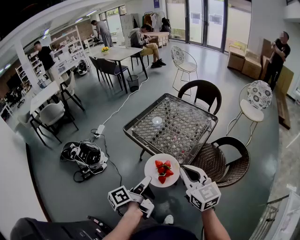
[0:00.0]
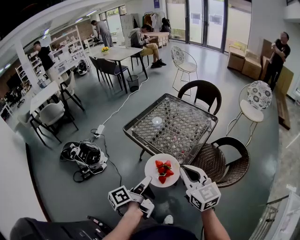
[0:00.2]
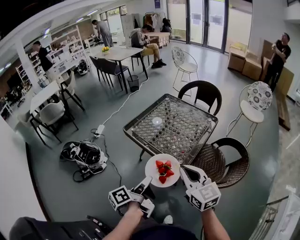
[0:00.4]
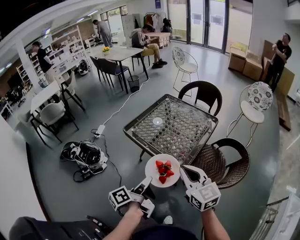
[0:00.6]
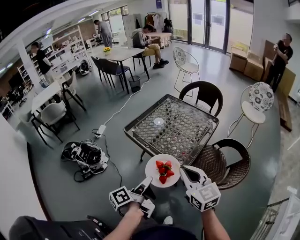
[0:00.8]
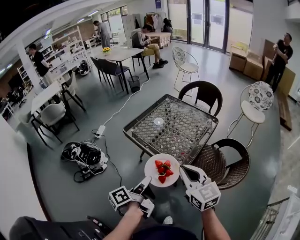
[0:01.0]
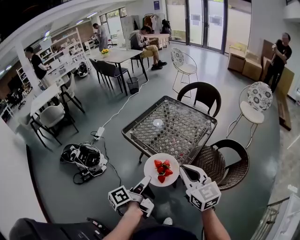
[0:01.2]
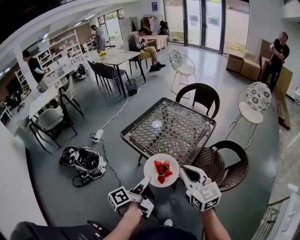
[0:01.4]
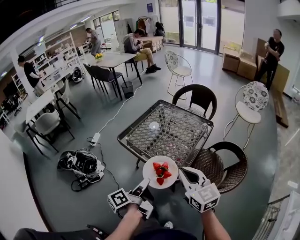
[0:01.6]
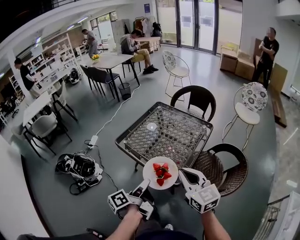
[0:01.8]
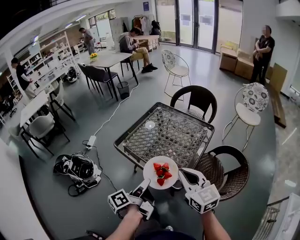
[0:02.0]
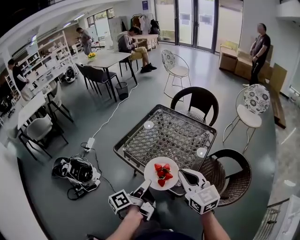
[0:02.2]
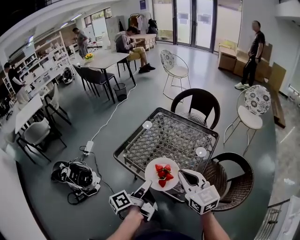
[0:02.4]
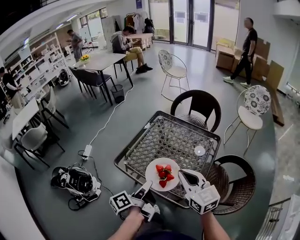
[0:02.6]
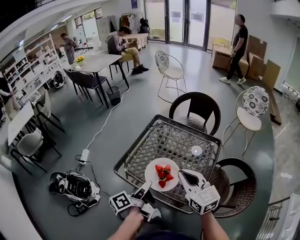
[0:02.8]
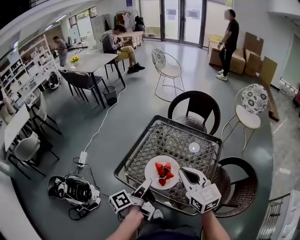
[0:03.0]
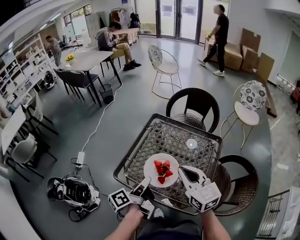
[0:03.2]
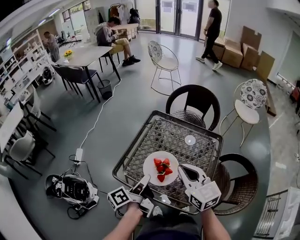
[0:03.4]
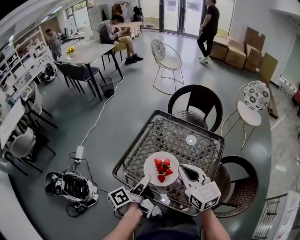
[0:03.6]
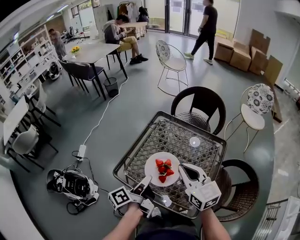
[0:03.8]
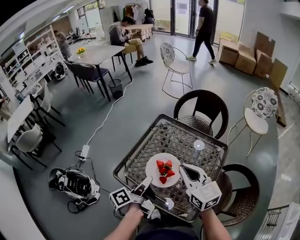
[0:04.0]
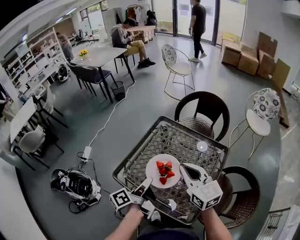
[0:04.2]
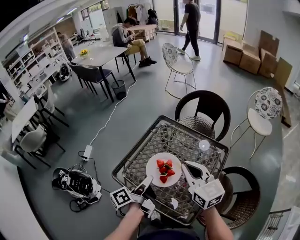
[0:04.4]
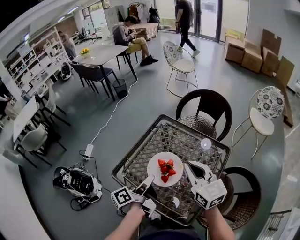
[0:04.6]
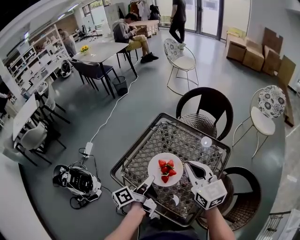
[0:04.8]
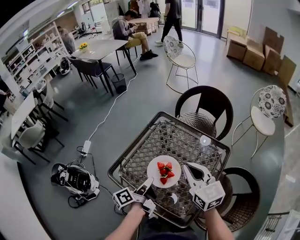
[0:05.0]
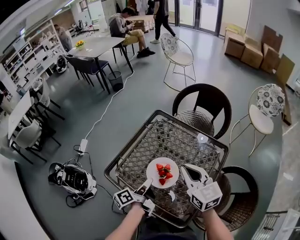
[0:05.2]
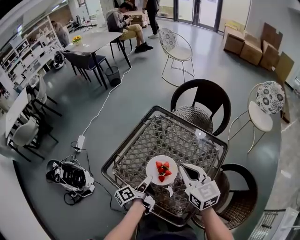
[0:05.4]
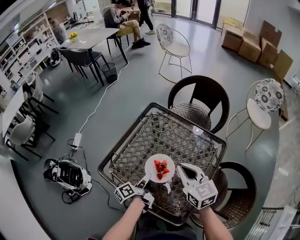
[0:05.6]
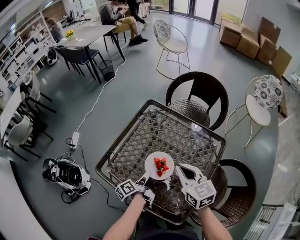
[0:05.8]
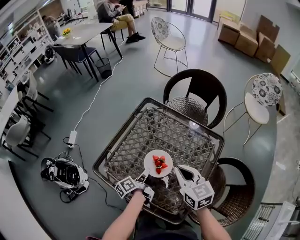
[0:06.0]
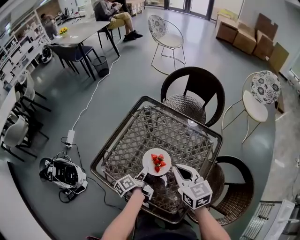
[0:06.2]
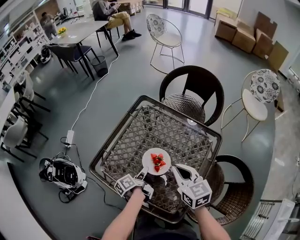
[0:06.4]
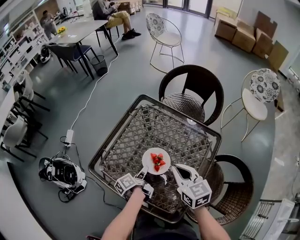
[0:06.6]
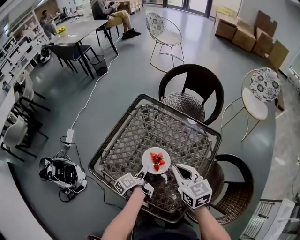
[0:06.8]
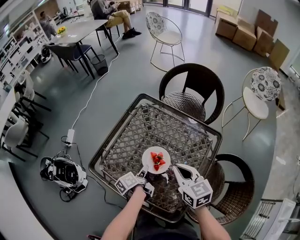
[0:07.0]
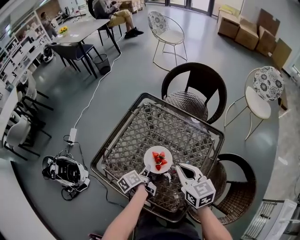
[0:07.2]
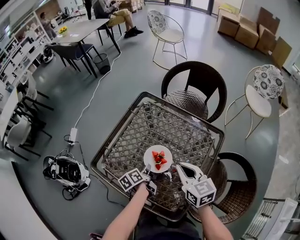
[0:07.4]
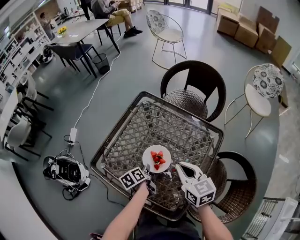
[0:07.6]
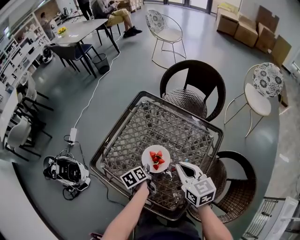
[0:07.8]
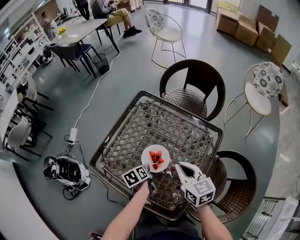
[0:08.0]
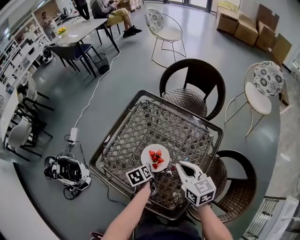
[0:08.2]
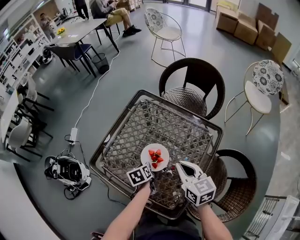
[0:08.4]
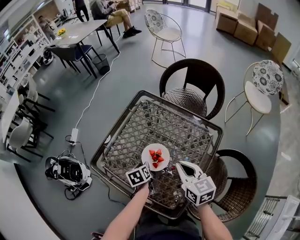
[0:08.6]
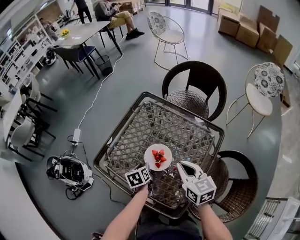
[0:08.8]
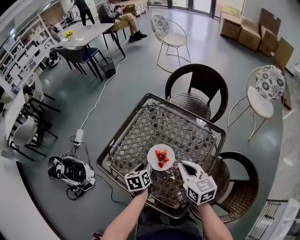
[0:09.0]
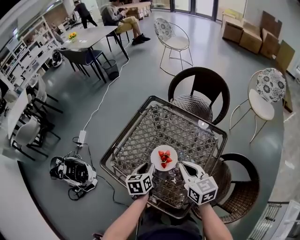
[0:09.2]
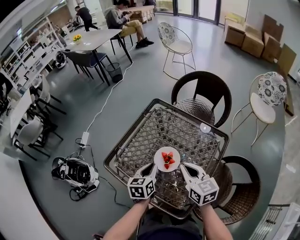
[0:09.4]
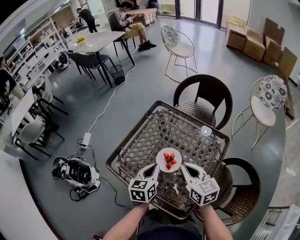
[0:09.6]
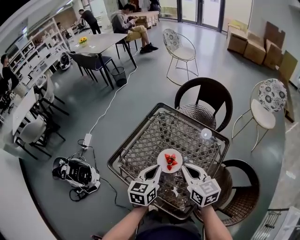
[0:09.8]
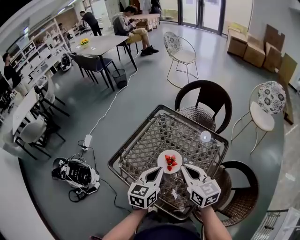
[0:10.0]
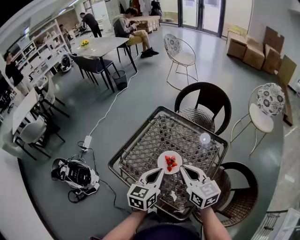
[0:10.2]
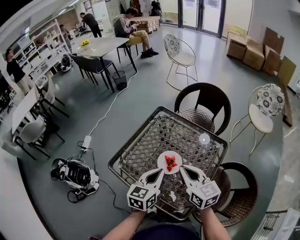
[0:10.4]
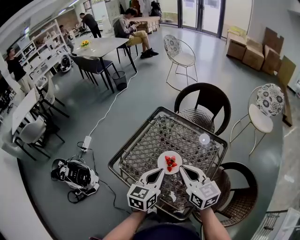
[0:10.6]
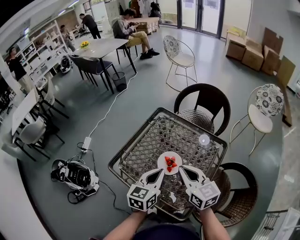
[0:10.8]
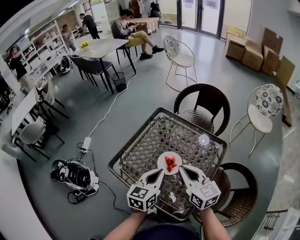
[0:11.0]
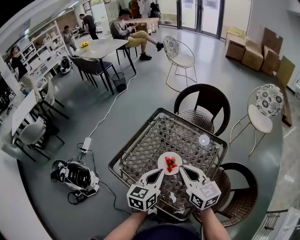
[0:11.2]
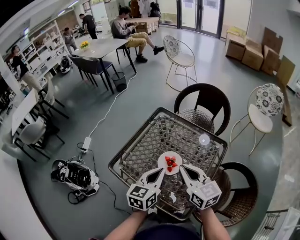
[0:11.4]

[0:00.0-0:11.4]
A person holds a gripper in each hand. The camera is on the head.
0:01.4 to 0:02.8: The right gripper ends up about 25 cm from where it was.
0:02.8 to 0:04.2: The right gripper changes place by about 10 cm.
0:04.2 to 0:05.6: The right gripper is displaced downward by about 10 cm.
0:05.6 to 0:07.2: The right gripper moves downward, roughly 5 cm.
0:08.6 to 0:10.0: The right gripper goes roughly 10 cm upward.

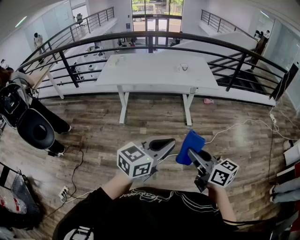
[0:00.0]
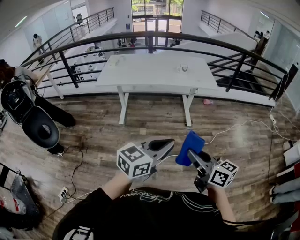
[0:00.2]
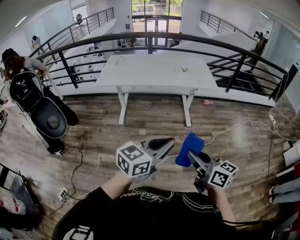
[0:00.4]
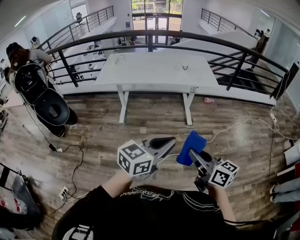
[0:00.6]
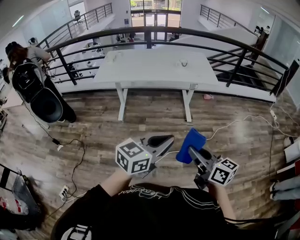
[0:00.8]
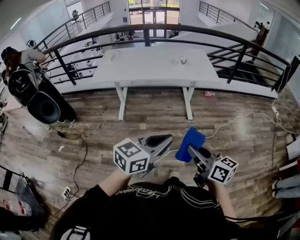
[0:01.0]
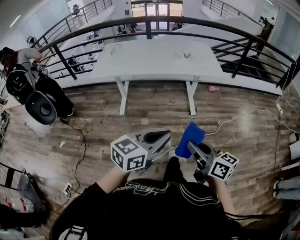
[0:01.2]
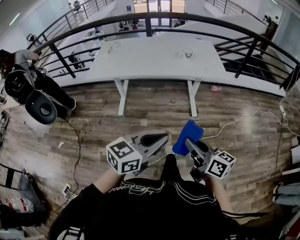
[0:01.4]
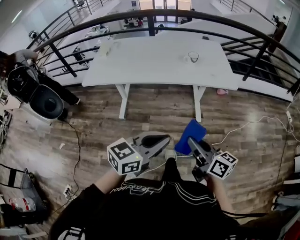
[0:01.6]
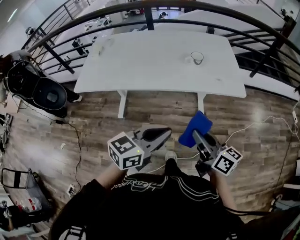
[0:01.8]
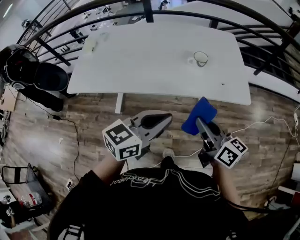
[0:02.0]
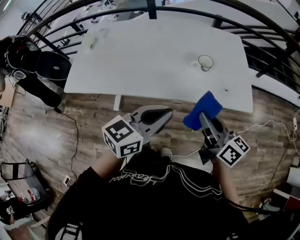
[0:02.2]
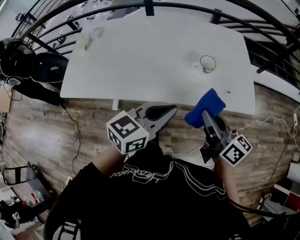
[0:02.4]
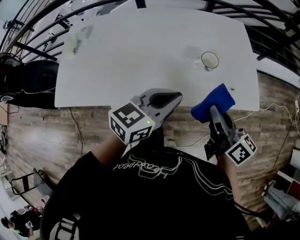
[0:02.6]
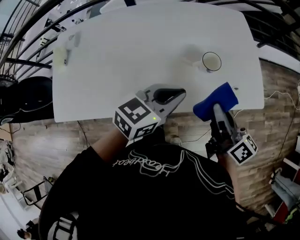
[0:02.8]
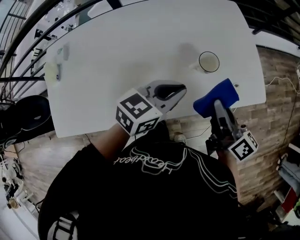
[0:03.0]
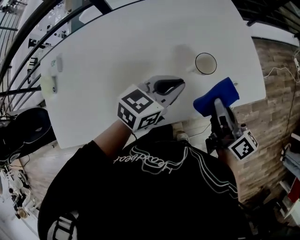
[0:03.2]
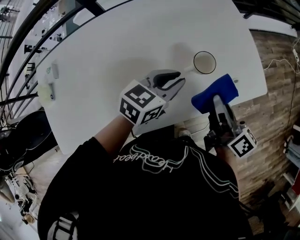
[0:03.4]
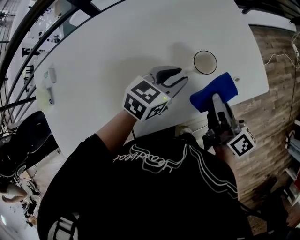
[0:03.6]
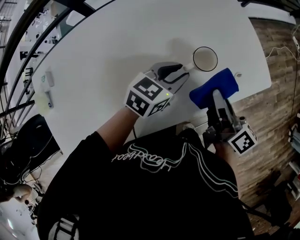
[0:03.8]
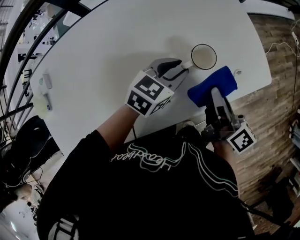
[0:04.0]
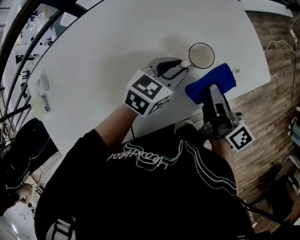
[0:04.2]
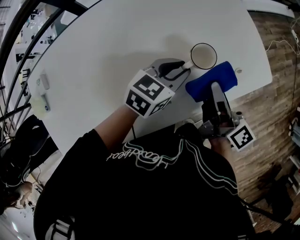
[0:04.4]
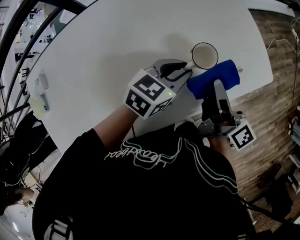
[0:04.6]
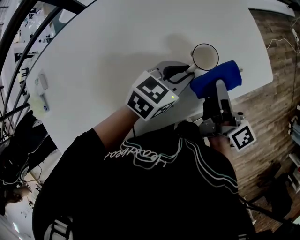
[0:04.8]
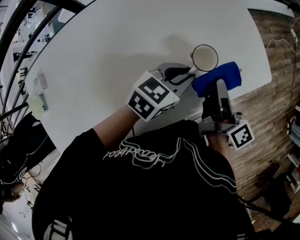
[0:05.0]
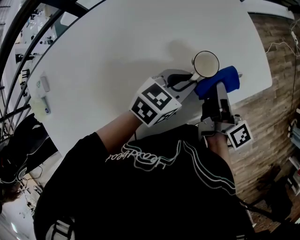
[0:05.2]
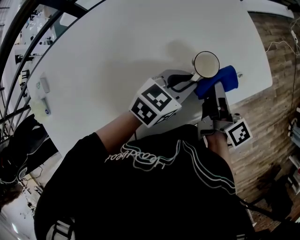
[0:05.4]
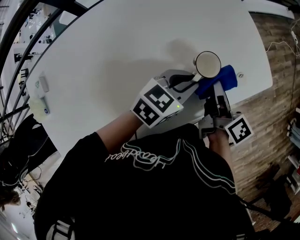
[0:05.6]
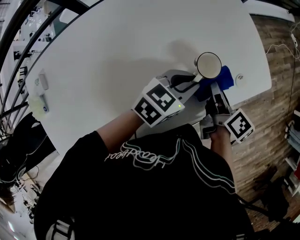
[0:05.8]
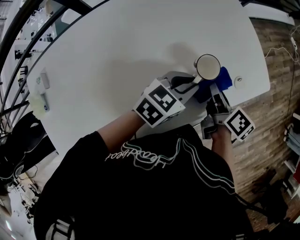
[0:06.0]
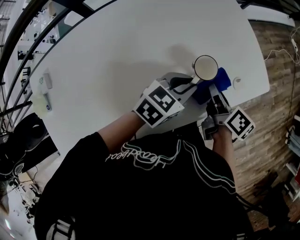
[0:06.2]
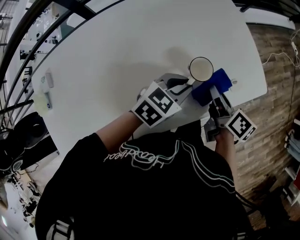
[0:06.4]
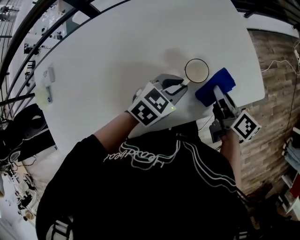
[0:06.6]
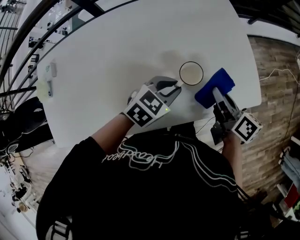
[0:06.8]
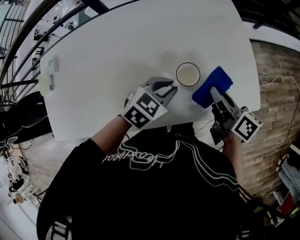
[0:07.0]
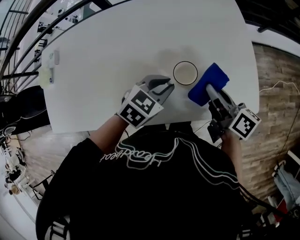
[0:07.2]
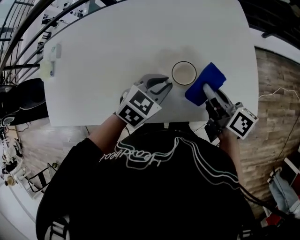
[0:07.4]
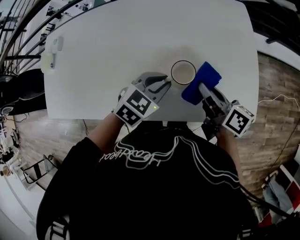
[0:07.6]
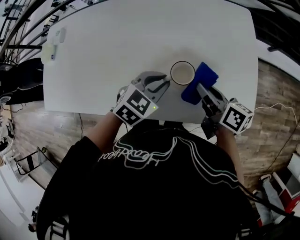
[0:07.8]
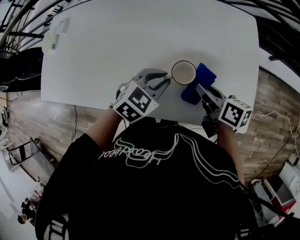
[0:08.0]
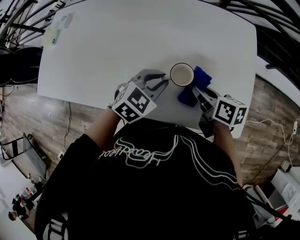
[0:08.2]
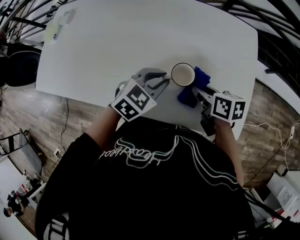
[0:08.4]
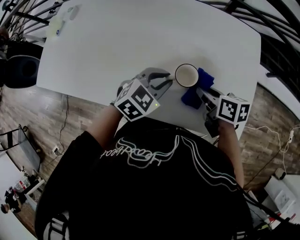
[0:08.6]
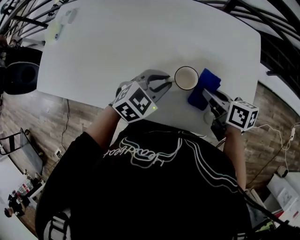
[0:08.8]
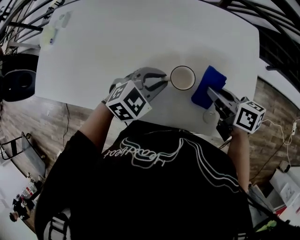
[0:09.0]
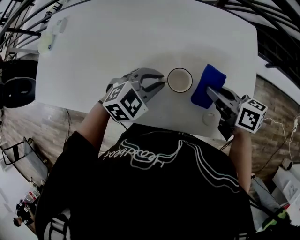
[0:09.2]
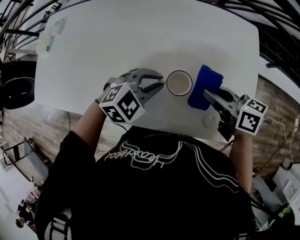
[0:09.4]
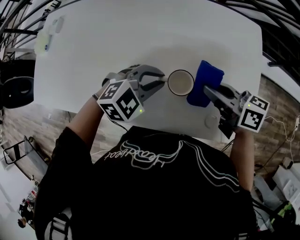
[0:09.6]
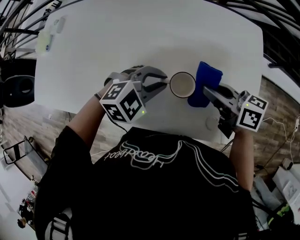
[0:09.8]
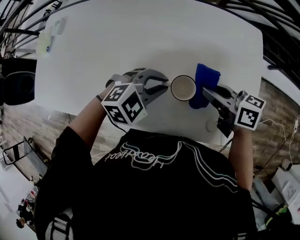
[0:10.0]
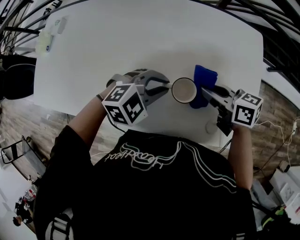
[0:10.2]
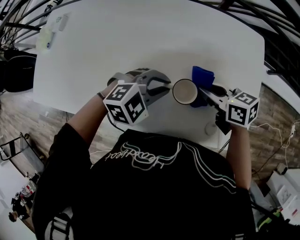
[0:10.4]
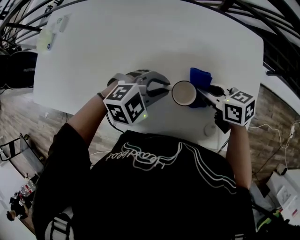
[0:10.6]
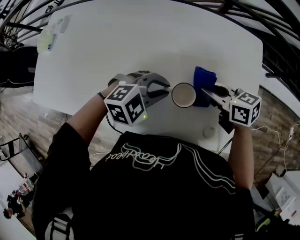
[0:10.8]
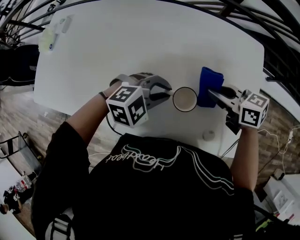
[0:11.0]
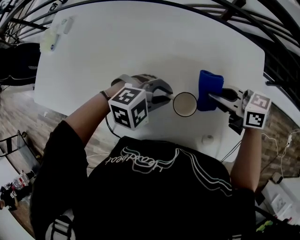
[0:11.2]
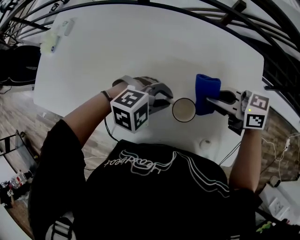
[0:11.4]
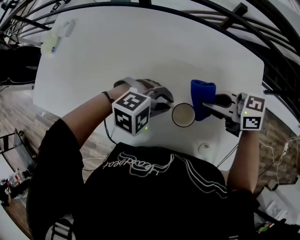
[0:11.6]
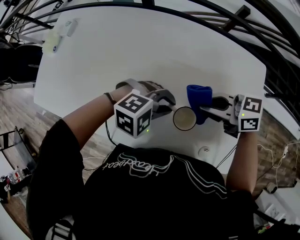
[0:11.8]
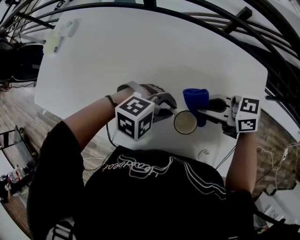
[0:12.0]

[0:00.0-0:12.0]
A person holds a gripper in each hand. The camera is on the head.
0:00.0 to 0:01.6: Both grippers move forward, approximately 30 cm.
0:01.6 to 0:03.0: Both grippers are carried forward, roughly 60 cm. The left gripper swivels some 20 degrees. The right gripper changes its angle by roughly 30 degrees.
0:03.0 to 0:04.4: The right gripper is displaced forward and downward by roughly 10 cm, and rotates approximately 20 degrees, while the left gripper heads forward and downward, covering roughly 15 cm, and opens its fingers.
0:04.4 to 0:06.0: The right gripper is displaced downward by roughly 5 cm, and turns by some 20 degrees.
0:06.0 to 0:07.6: The left gripper swivels approximately 30 degrees. The right gripper moves some 10 cm, and turns by about 40 degrees.
0:07.6 to 0:09.0: The right gripper changes its angle by roughly 30 degrees.
0:09.0 to 0:10.4: The right gripper shifts by some 5 cm.
0:10.4 to 0:12.0: The right gripper changes place by approximately 10 cm, and swivels roughly 30 degrees.

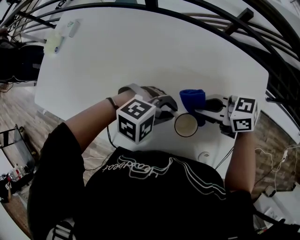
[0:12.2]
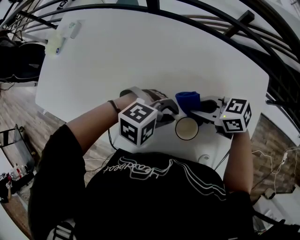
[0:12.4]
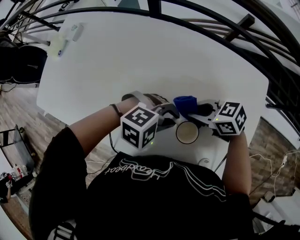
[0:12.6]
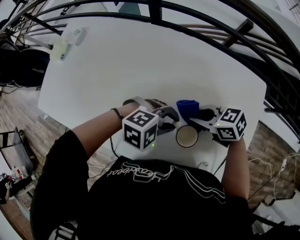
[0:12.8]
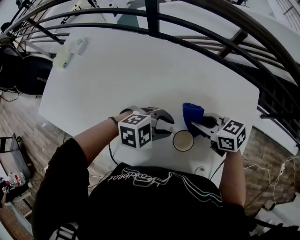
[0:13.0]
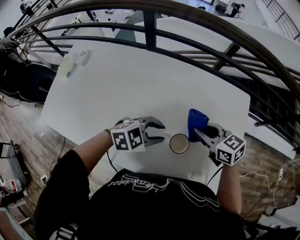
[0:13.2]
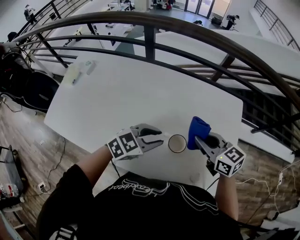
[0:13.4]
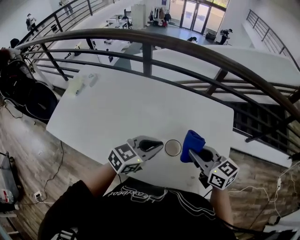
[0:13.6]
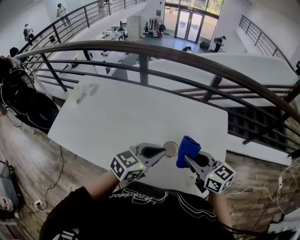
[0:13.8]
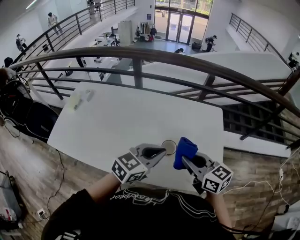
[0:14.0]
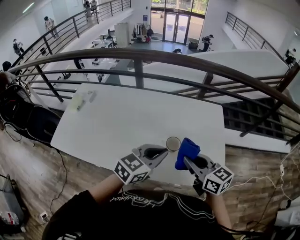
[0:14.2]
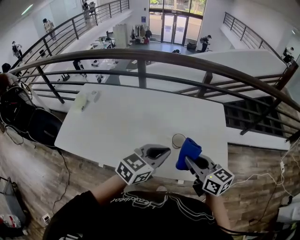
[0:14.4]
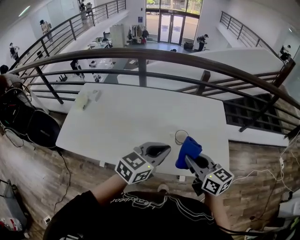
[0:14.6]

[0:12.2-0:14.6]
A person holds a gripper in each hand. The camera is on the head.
0:12.2 to 0:13.4: The grippers both shift upward by some 20 cm. The left gripper changes its angle by approximately 40 degrees. The right gripper rotates roughly 40 degrees.
0:13.4 to 0:14.6: The right gripper is displaced backward, upward and to the left by some 25 cm, and swivels approximately 20 degrees. The left gripper moves upward and backward, about 20 cm, and closes.
